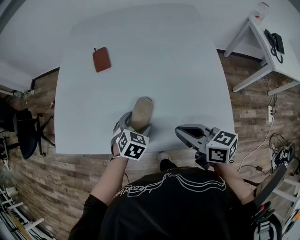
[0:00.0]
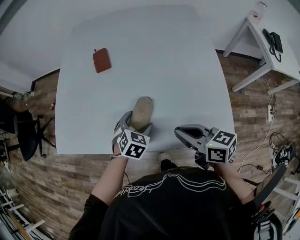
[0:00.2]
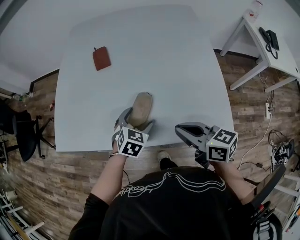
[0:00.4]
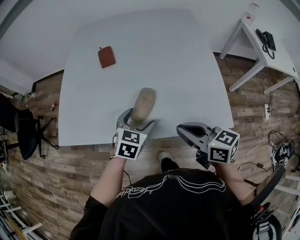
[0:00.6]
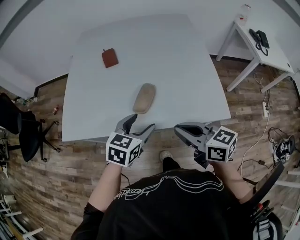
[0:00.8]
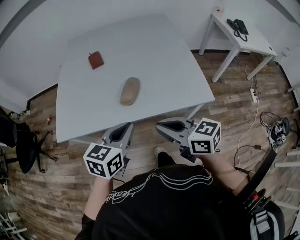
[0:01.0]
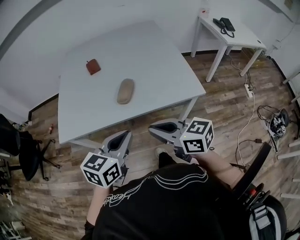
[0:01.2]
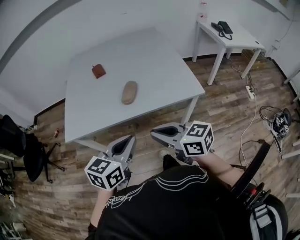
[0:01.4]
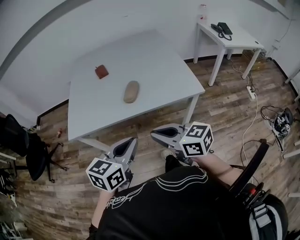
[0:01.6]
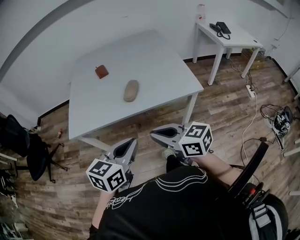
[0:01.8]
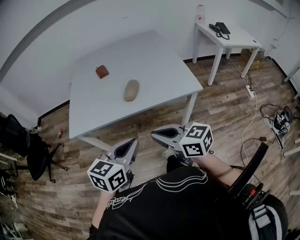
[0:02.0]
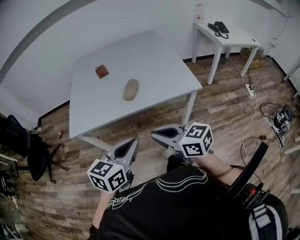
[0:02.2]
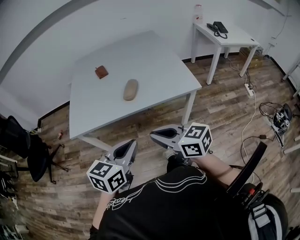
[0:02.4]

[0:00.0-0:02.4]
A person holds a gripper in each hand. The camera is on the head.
0.0 to 1.2 s: The left gripper heads backward and upward, covering roughly 35 cm, angles its fingers upward, by approximately 30 degrees, and closes. Meanwhile the right gripper travels backward, to the left and upward by some 25 cm.
1.2 to 2.4 s: The grippers both shift backward by about 10 cm.

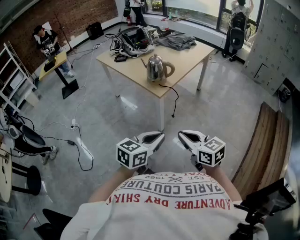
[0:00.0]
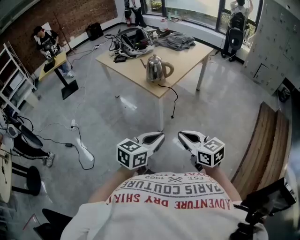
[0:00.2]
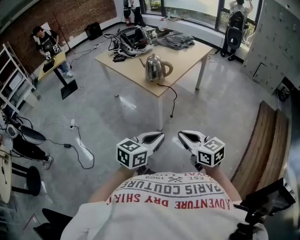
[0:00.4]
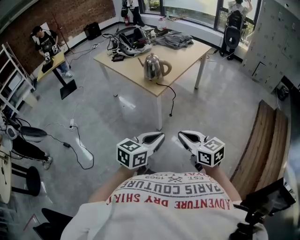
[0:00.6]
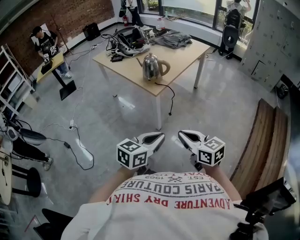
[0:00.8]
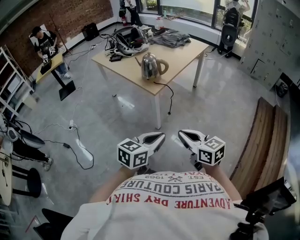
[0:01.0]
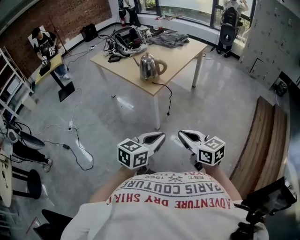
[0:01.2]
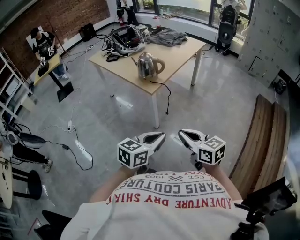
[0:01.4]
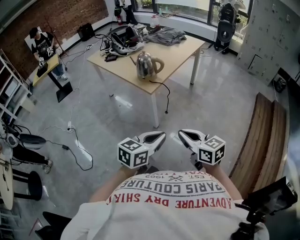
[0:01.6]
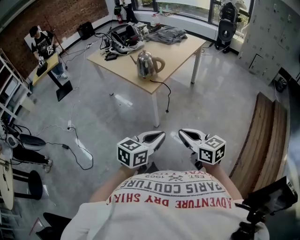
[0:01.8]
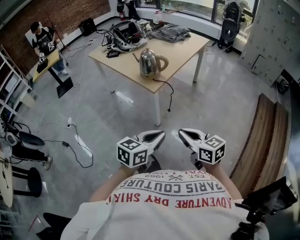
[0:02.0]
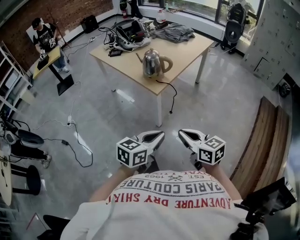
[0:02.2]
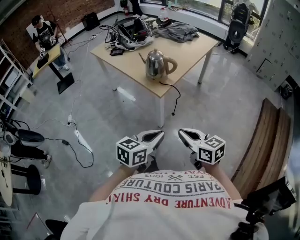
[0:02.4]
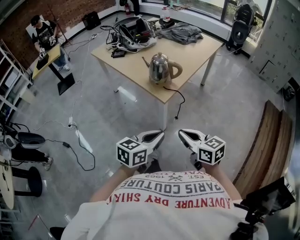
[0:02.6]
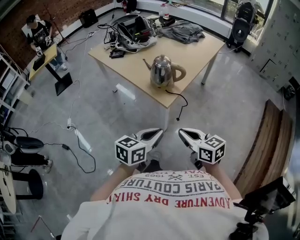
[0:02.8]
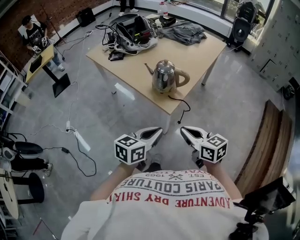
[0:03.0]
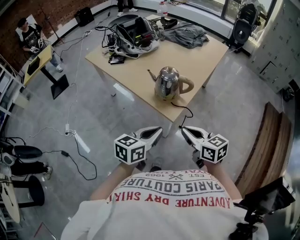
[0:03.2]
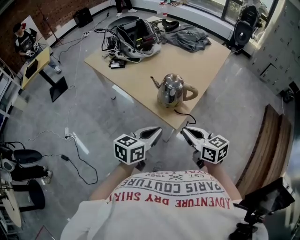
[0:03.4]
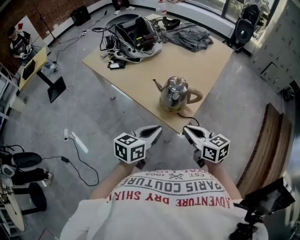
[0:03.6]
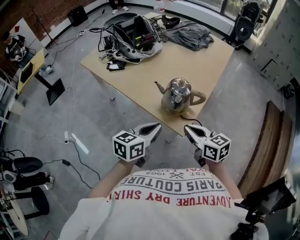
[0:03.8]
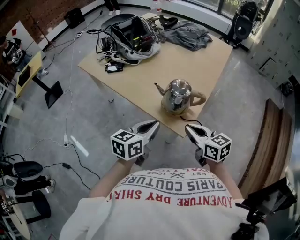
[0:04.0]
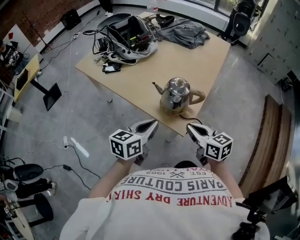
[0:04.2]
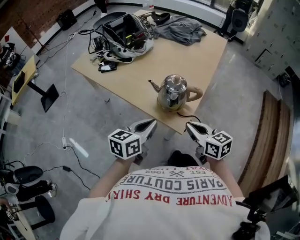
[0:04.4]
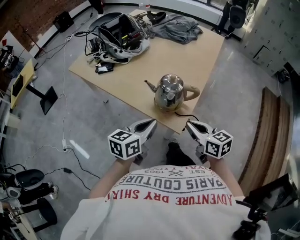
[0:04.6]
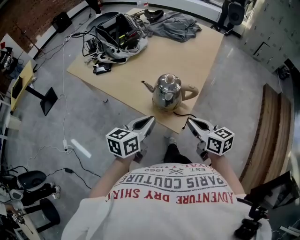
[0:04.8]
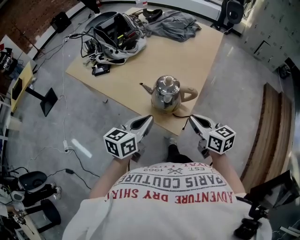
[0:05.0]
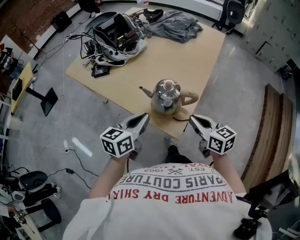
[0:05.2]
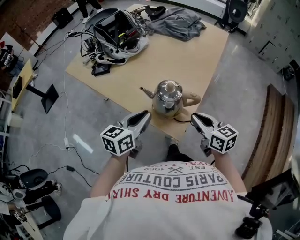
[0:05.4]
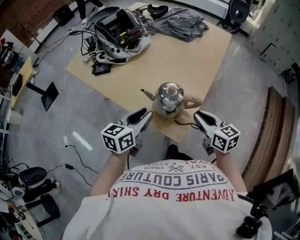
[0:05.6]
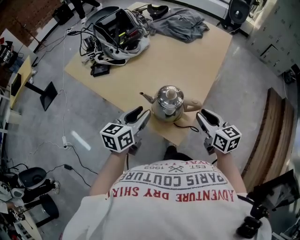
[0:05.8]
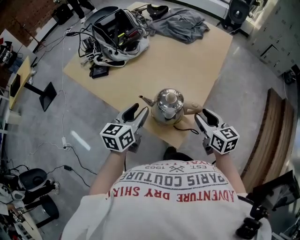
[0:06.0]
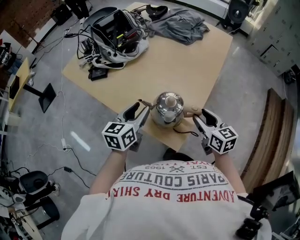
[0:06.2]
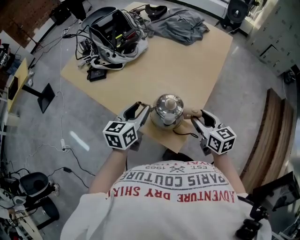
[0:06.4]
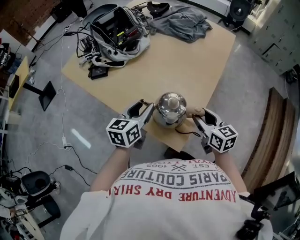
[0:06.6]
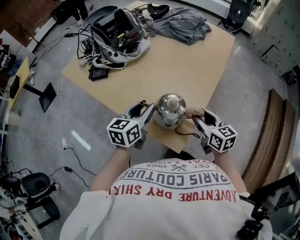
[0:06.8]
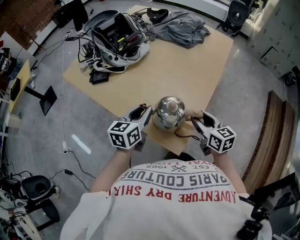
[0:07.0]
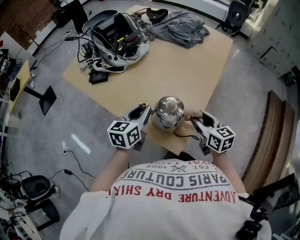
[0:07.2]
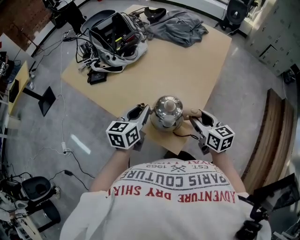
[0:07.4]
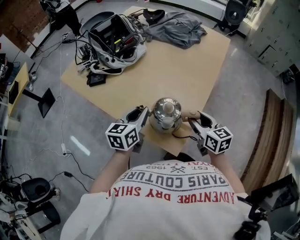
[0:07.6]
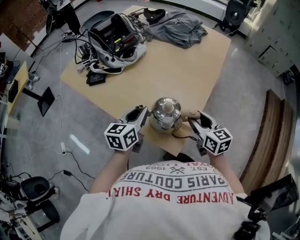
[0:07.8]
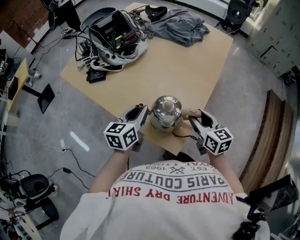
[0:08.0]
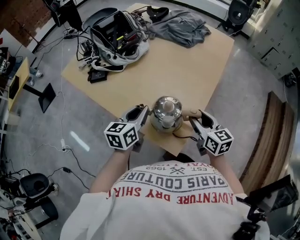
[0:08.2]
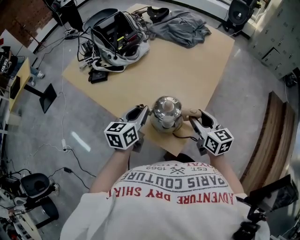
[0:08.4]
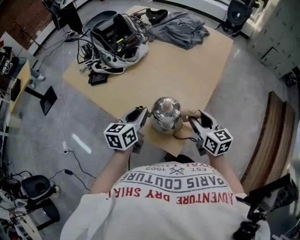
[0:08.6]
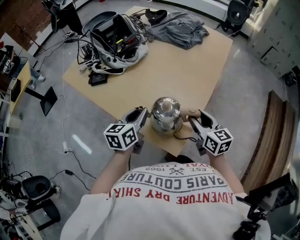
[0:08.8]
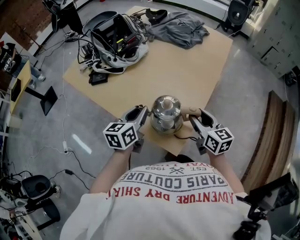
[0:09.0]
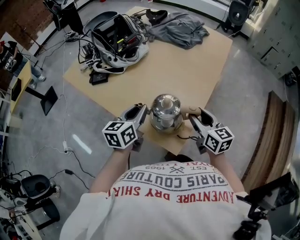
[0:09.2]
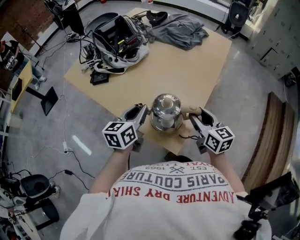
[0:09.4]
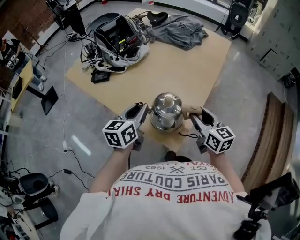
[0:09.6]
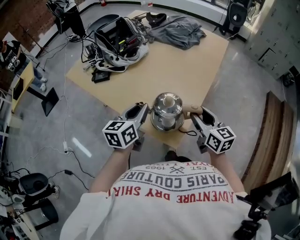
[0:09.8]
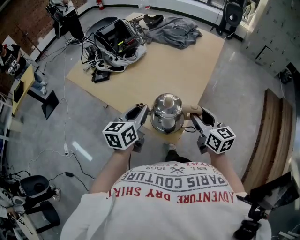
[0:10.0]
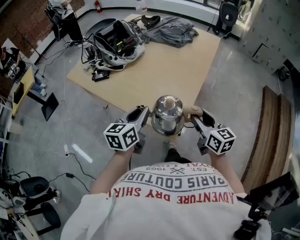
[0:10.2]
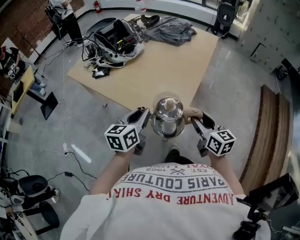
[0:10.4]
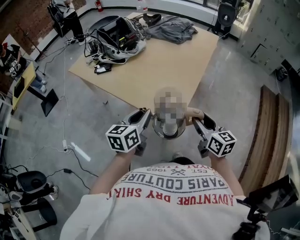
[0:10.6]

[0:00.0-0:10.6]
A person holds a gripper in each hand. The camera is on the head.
0.0 to 1.6 s: There are only small adjustments of the grippers.
1.6 to 3.0 s: Both grippers move forward and to the left, roughly 25 cm.
3.0 to 4.6 s: The right gripper shifts some 15 cm forward, while the left gripper moves forward and to the left, roughly 20 cm.
4.6 to 6.0 s: The right gripper goes some 15 cm forward and to the right, and opens up, while the left gripper is displaced forward by about 15 cm, and opens up.
6.0 to 7.6 s: The left gripper closes.
7.6 to 9.0 s: There are only small adjustments of the grippers.
9.0 to 10.6 s: The two grippers go approximately 15 cm backward.

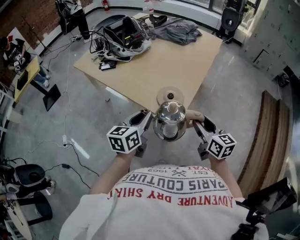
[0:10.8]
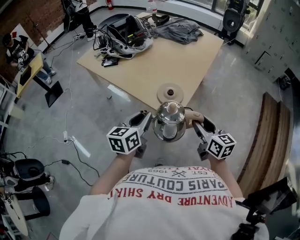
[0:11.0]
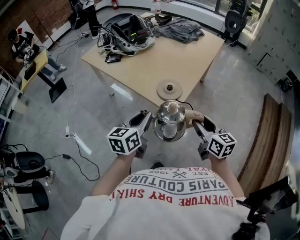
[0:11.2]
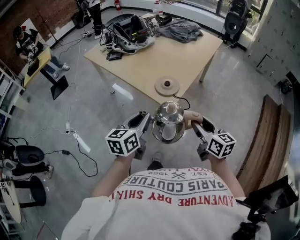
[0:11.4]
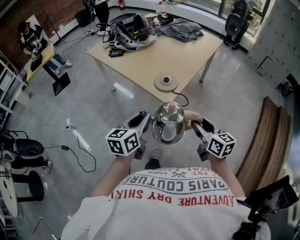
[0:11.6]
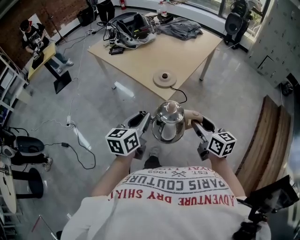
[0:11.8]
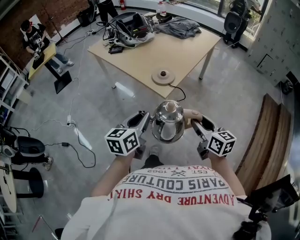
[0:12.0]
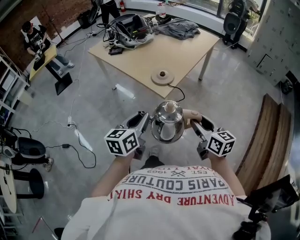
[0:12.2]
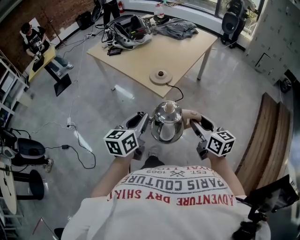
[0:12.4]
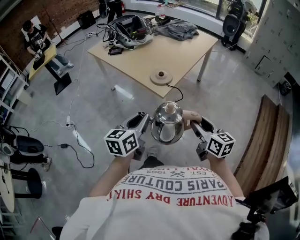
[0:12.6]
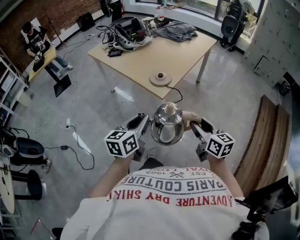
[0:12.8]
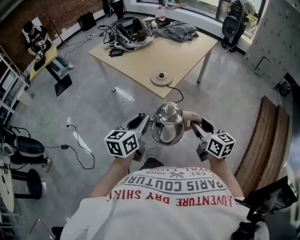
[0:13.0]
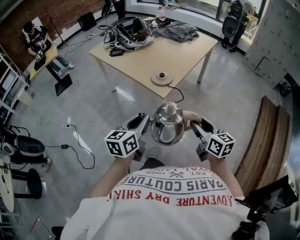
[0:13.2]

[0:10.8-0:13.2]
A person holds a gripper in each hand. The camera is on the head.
10.8 to 12.0 s: The grippers both shift backward by some 20 cm.
12.0 to 13.2 s: The grippers make only small movements.

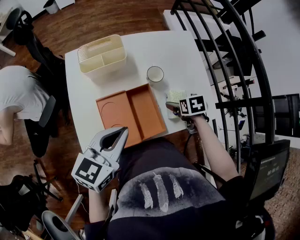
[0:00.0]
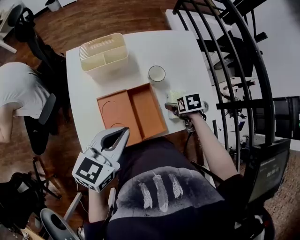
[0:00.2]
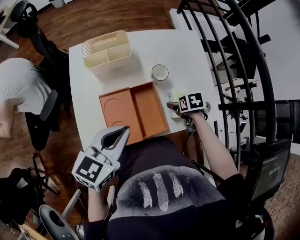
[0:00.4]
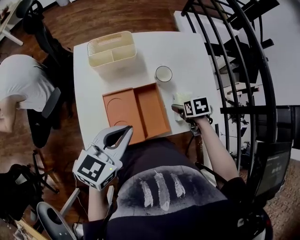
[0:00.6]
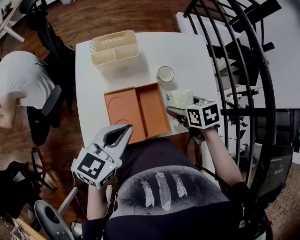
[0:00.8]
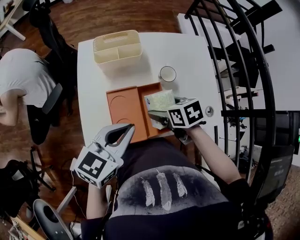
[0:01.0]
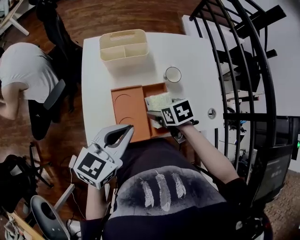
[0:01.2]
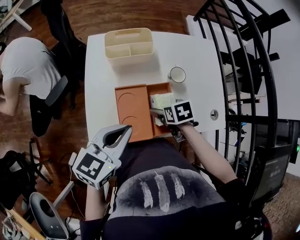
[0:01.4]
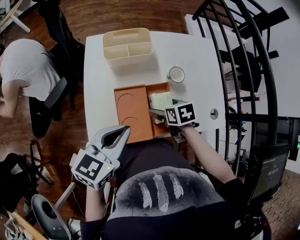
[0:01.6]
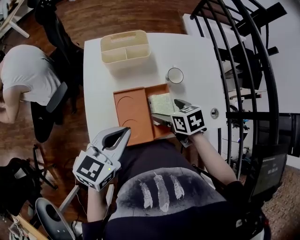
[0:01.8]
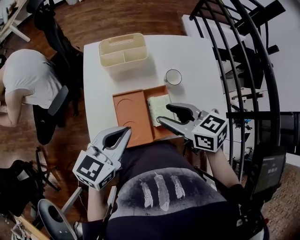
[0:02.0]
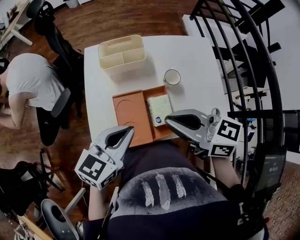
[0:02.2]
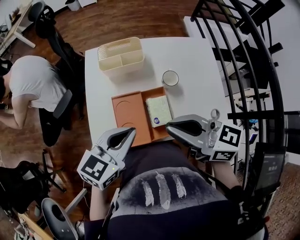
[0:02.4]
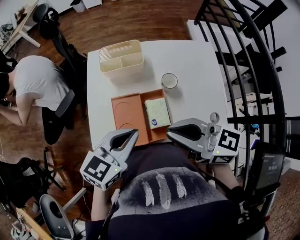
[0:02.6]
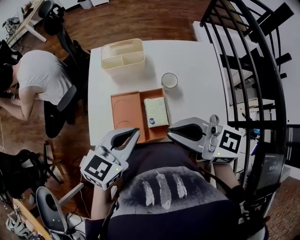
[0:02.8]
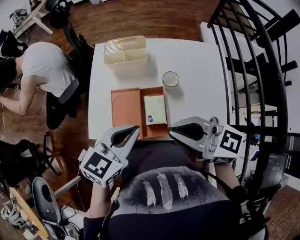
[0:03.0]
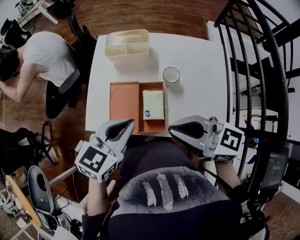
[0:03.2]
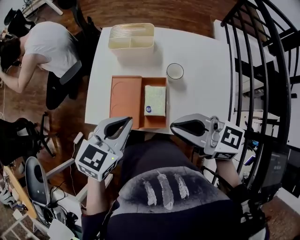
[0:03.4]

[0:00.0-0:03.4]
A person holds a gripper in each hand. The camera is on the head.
0.0 to 1.6 s: The right gripper reaches roughly 10 cm upward, then returns, while the left gripper ends up some 5 cm from where it was.
1.6 to 3.4 s: The right gripper shifts roughly 25 cm upward, tips its fingers upward by approximately 60 degrees, and closes its fingers, while the left gripper goes some 10 cm to the right.

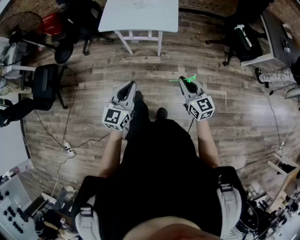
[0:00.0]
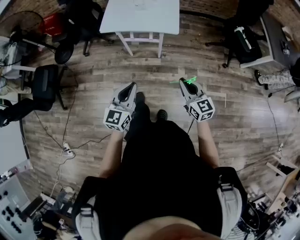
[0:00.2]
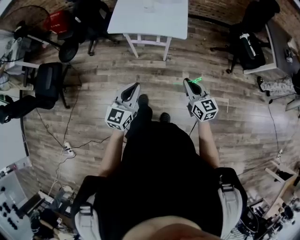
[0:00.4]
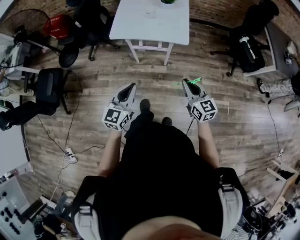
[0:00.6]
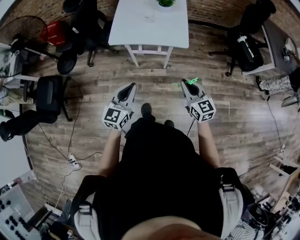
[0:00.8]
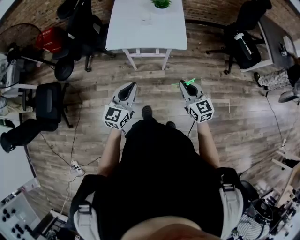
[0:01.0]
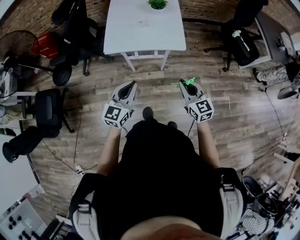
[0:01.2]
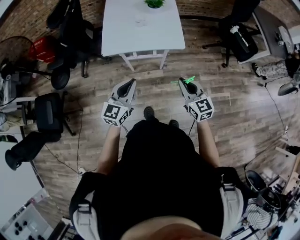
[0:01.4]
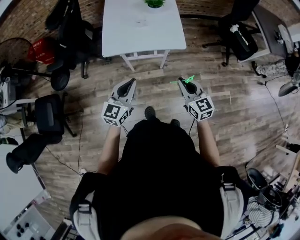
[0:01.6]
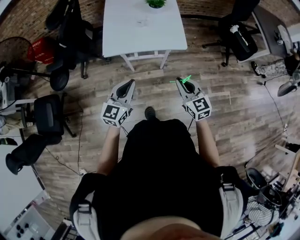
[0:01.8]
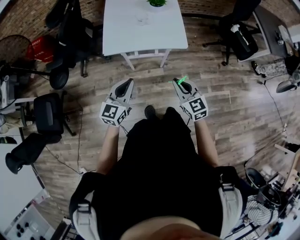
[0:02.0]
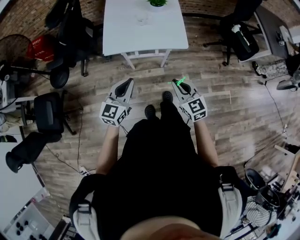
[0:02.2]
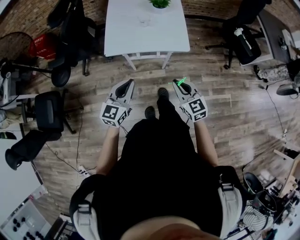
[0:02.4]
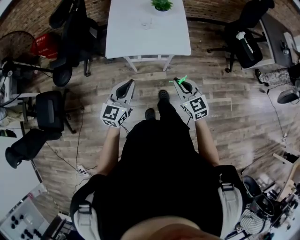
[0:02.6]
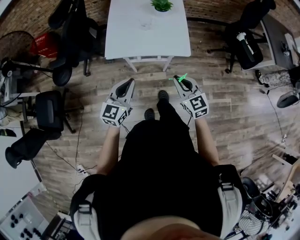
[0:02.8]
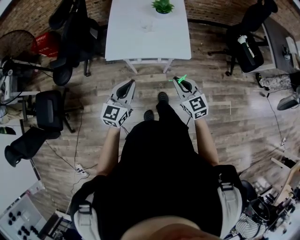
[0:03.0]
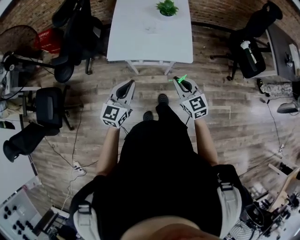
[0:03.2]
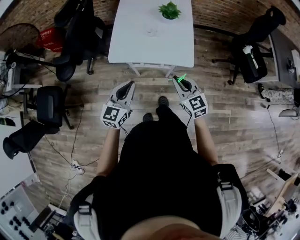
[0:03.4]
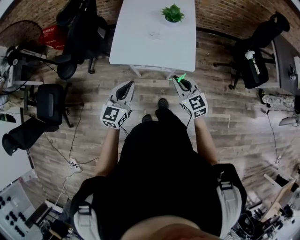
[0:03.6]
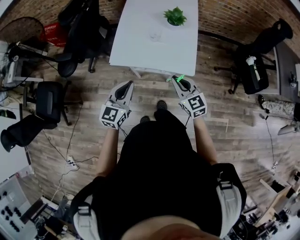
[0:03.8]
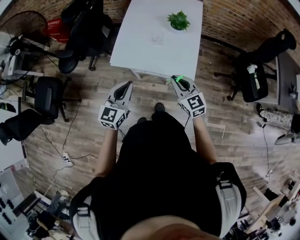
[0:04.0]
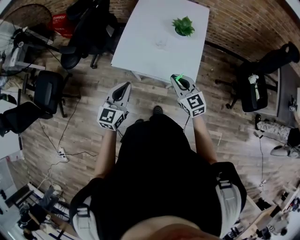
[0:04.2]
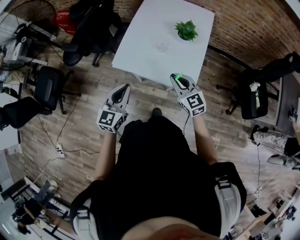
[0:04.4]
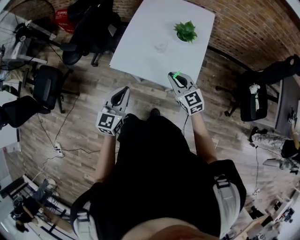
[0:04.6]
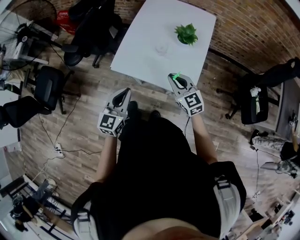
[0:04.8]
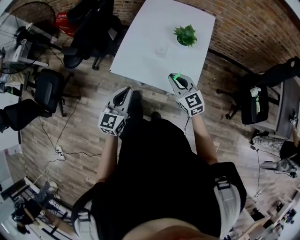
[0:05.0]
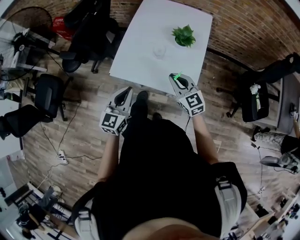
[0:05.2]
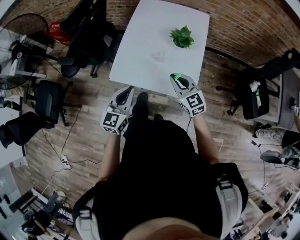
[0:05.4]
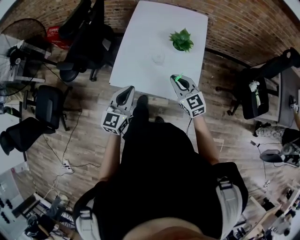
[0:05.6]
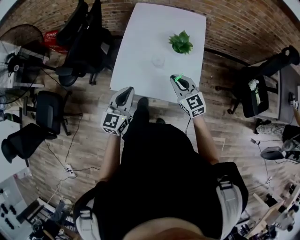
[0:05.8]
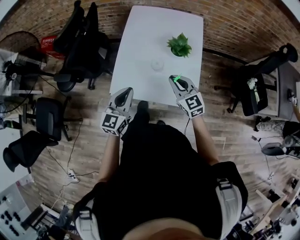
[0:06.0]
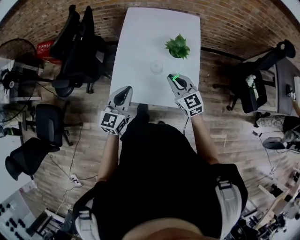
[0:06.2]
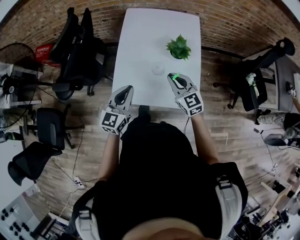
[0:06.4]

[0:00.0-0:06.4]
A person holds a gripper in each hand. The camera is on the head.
0.0 to 1.6 s: Both grippers travel together forward and to the left, roughly 20 cm.
1.6 to 3.2 s: The grippers both shift forward by about 10 cm.
3.2 to 4.8 s: The left gripper goes approximately 10 cm forward, and rotates about 20 degrees. The right gripper heads forward, covering roughly 20 cm, and turns by some 20 degrees.
4.8 to 6.4 s: Both grippers travel together forward, about 15 cm.
